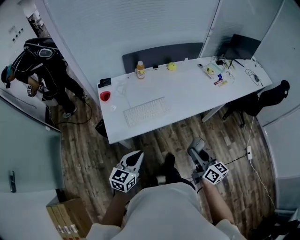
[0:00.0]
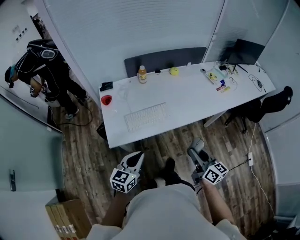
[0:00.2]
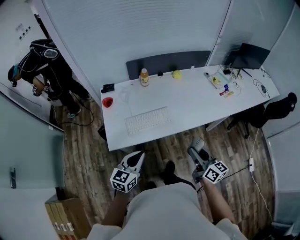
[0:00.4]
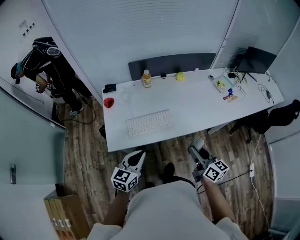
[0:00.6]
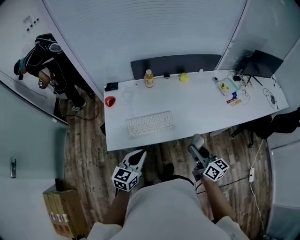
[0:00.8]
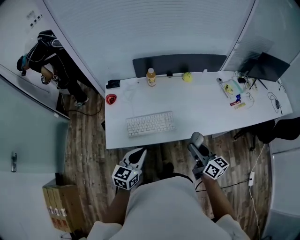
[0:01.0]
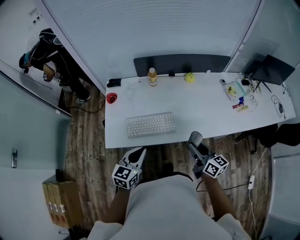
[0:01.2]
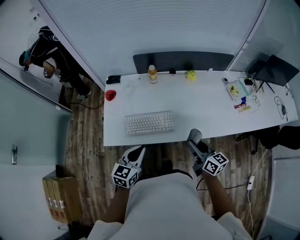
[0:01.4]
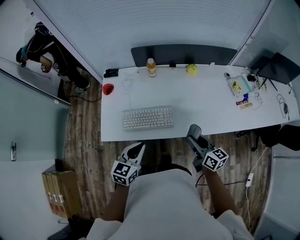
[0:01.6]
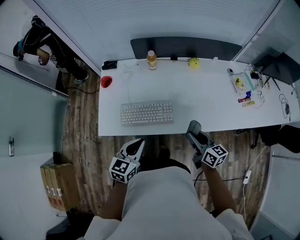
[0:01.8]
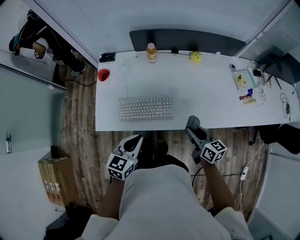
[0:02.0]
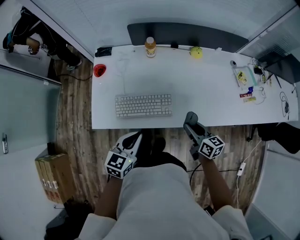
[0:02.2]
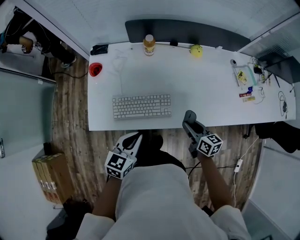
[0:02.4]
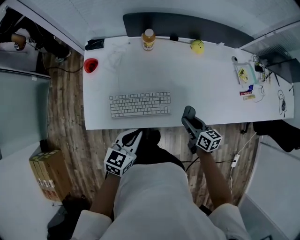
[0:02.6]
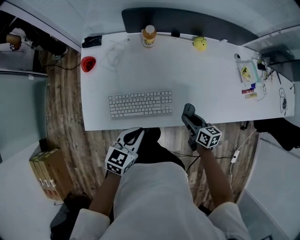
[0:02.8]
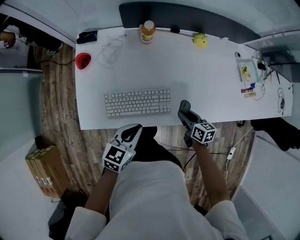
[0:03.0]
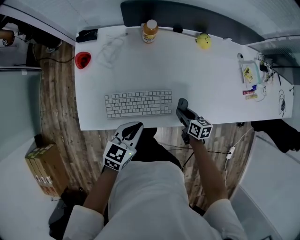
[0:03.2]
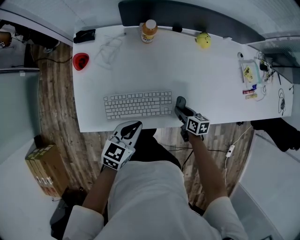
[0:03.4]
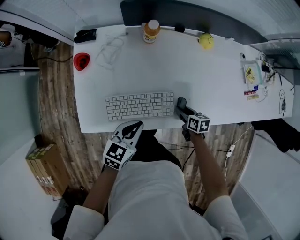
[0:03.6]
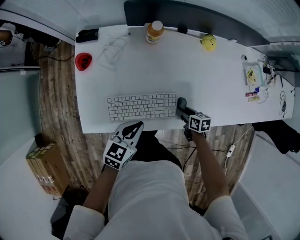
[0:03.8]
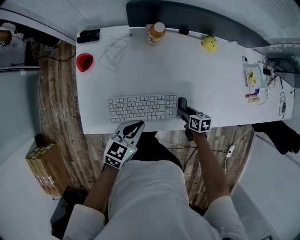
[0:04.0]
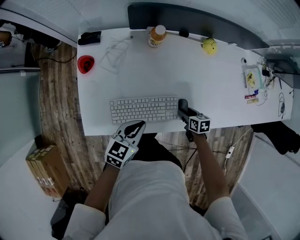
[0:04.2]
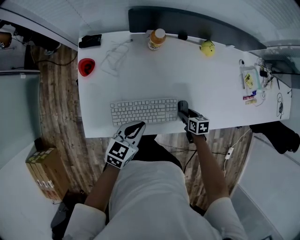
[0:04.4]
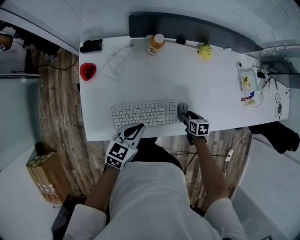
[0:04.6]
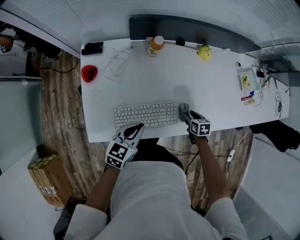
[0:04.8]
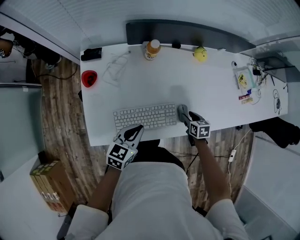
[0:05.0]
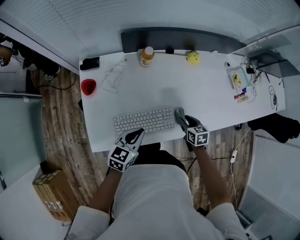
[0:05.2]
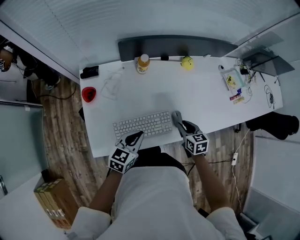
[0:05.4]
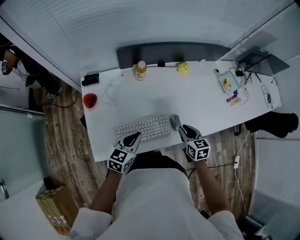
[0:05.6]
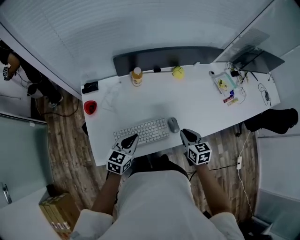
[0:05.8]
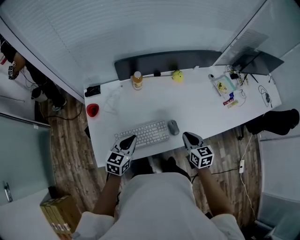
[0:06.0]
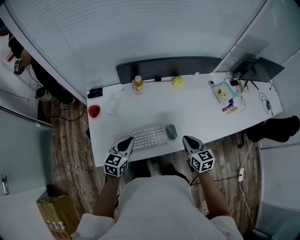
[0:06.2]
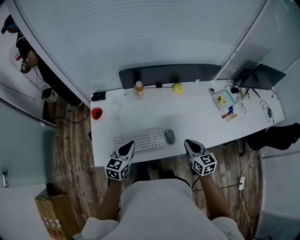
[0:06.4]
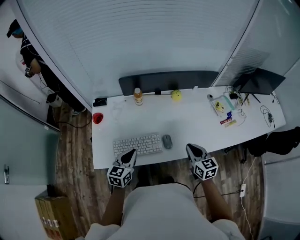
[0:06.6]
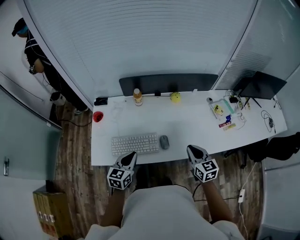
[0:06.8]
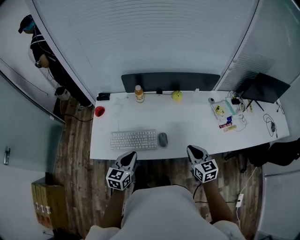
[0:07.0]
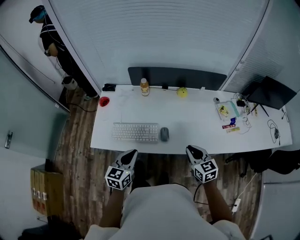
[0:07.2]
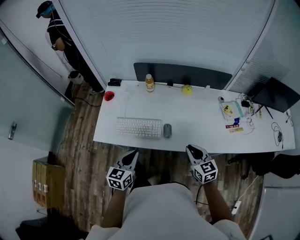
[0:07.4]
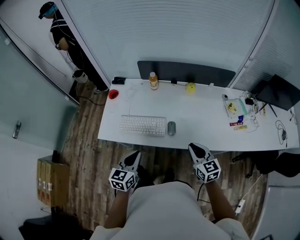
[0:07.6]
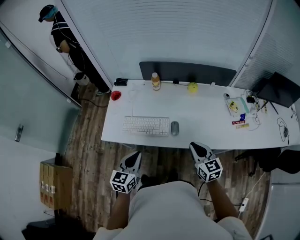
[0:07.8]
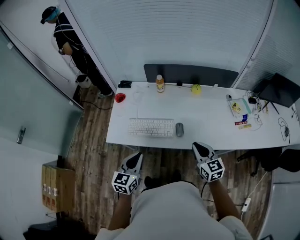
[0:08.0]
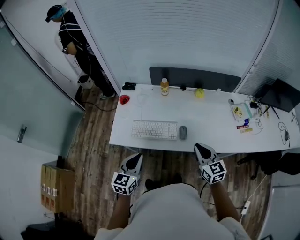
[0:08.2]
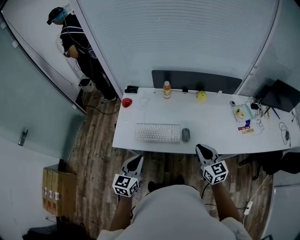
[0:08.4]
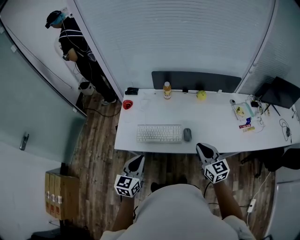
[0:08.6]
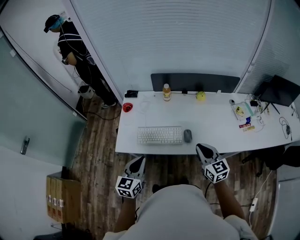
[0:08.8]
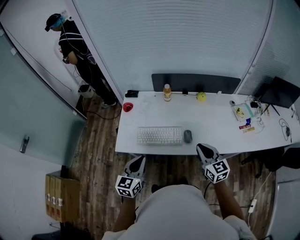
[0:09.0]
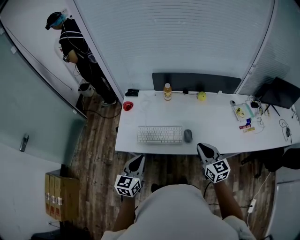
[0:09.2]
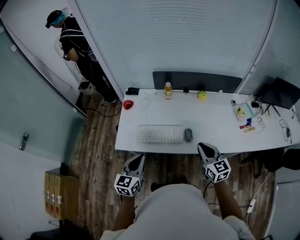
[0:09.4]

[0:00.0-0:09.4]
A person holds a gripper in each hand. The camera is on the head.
0:00.0 to 0:01.6: The left gripper heads forward and to the right, covering about 20 cm. Meanwhile the right gripper shifts about 25 cm forward, and swivels approximately 20 degrees.
0:01.6 to 0:03.2: The right gripper shifts approximately 25 cm downward and forward, and rotates approximately 30 degrees, while the left gripper travels downward and forward by roughly 15 cm.
0:03.2 to 0:04.8: The right gripper moves roughly 5 cm, and changes its angle by about 20 degrees; the left gripper shifts by about 5 cm.
0:04.8 to 0:06.2: The left gripper travels upward by approximately 5 cm, while the right gripper heads upward, covering roughly 25 cm, tilts its fingers roughly 30 degrees upward, and closes its fingers.
0:06.2 to 0:07.8: The left gripper moves backward and to the right, some 20 cm, and changes its angle by roughly 20 degrees, while the right gripper is displaced backward, upward and to the right by approximately 15 cm, and turns by some 20 degrees.
0:07.8 to 0:09.4: Both grippers travel together to the left, about 10 cm.

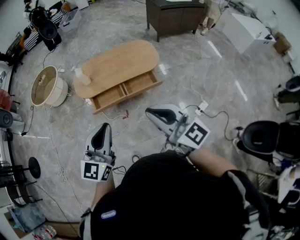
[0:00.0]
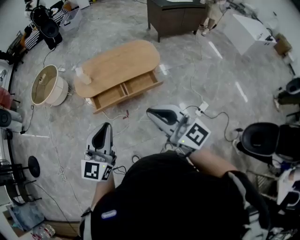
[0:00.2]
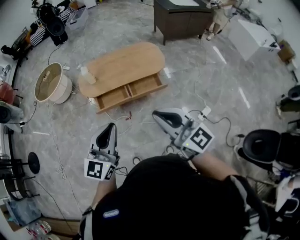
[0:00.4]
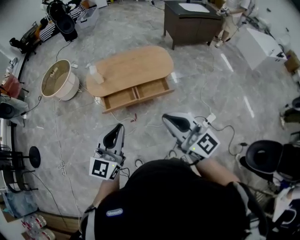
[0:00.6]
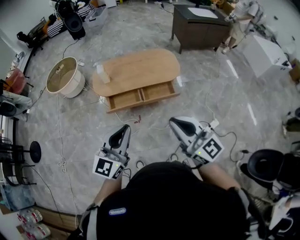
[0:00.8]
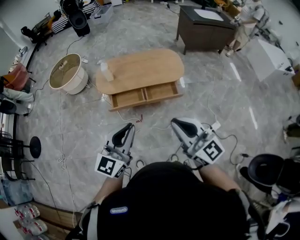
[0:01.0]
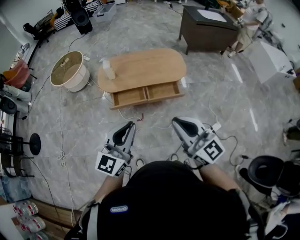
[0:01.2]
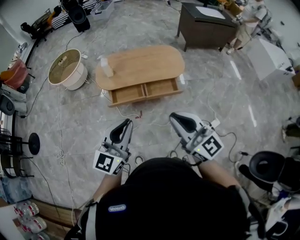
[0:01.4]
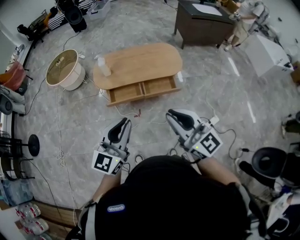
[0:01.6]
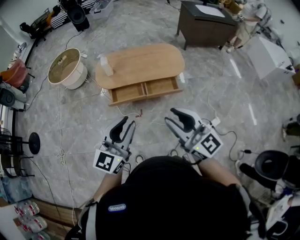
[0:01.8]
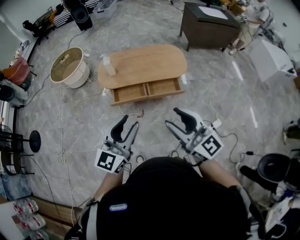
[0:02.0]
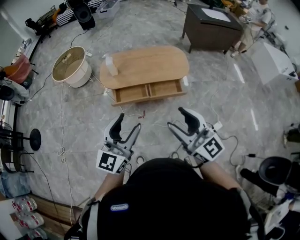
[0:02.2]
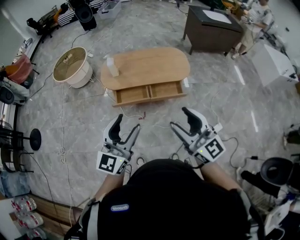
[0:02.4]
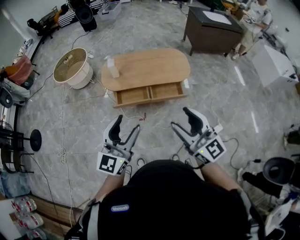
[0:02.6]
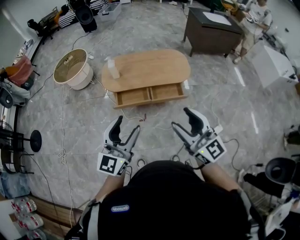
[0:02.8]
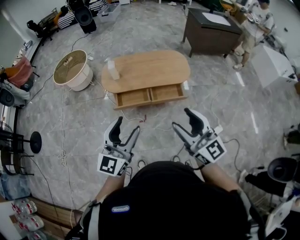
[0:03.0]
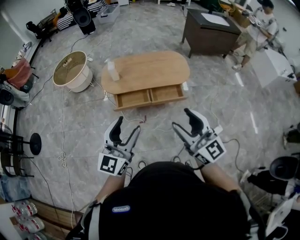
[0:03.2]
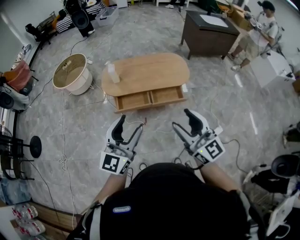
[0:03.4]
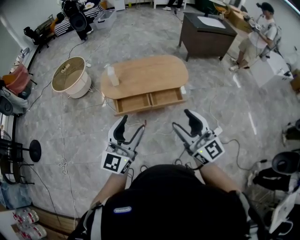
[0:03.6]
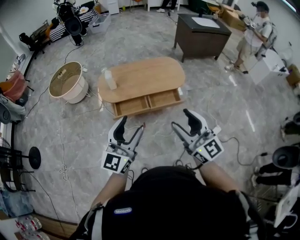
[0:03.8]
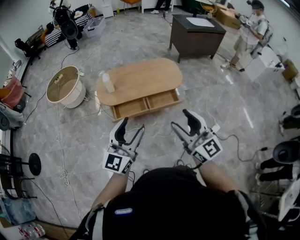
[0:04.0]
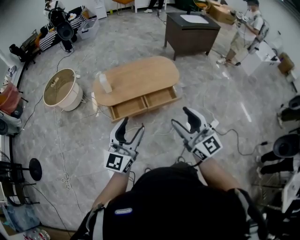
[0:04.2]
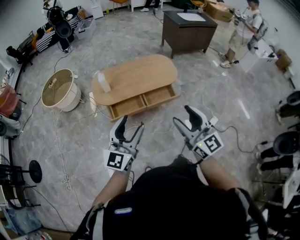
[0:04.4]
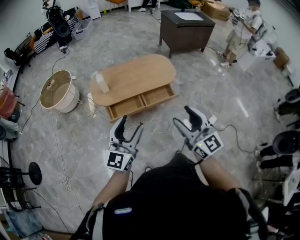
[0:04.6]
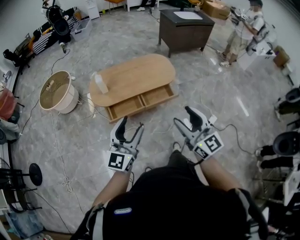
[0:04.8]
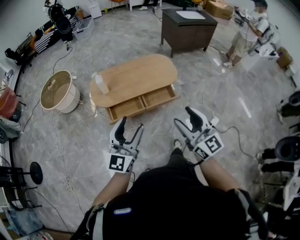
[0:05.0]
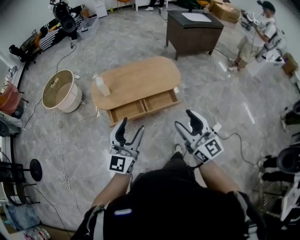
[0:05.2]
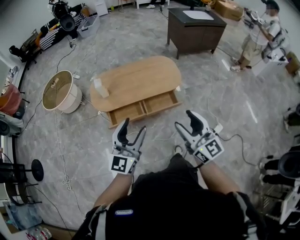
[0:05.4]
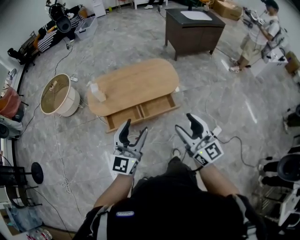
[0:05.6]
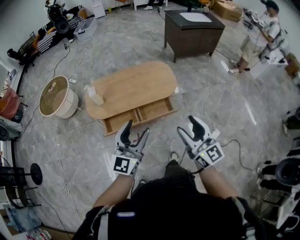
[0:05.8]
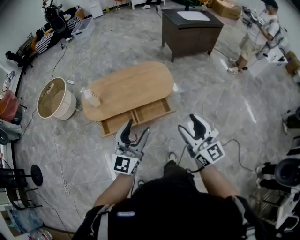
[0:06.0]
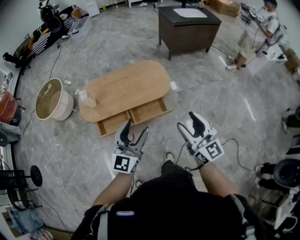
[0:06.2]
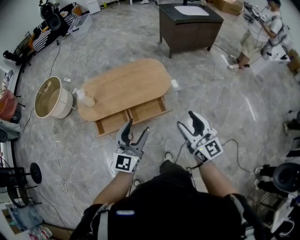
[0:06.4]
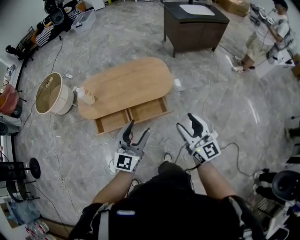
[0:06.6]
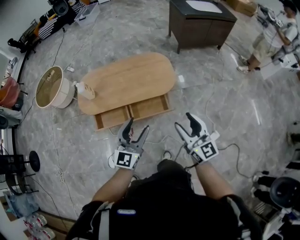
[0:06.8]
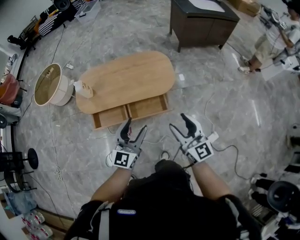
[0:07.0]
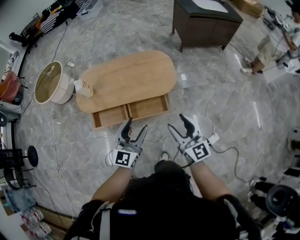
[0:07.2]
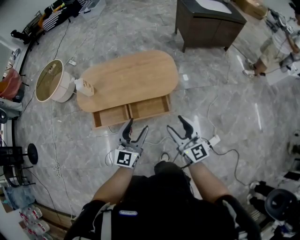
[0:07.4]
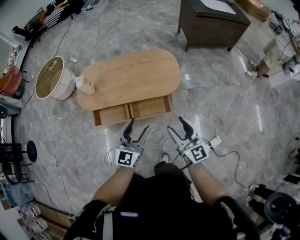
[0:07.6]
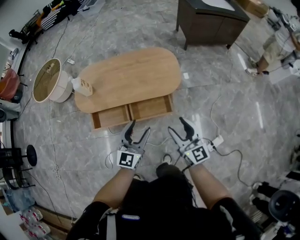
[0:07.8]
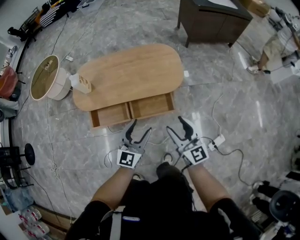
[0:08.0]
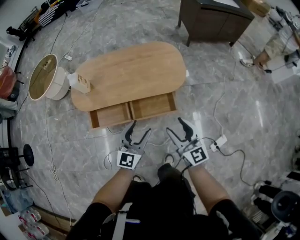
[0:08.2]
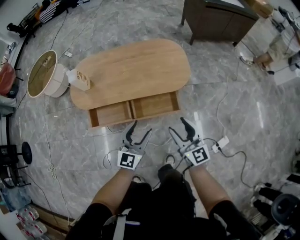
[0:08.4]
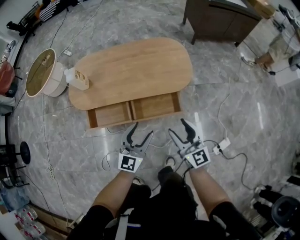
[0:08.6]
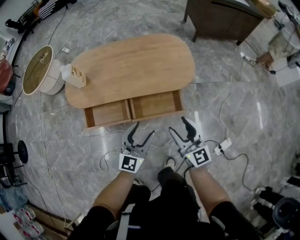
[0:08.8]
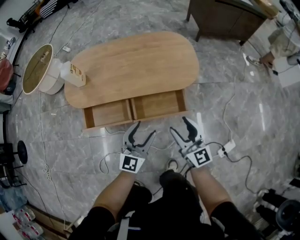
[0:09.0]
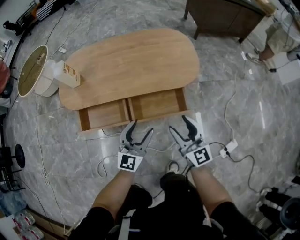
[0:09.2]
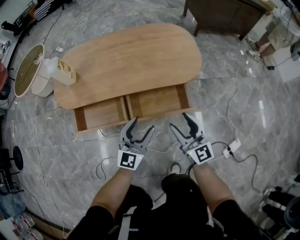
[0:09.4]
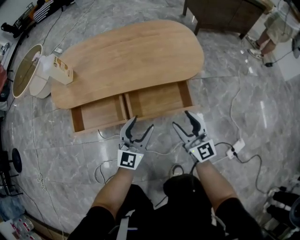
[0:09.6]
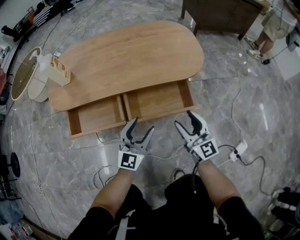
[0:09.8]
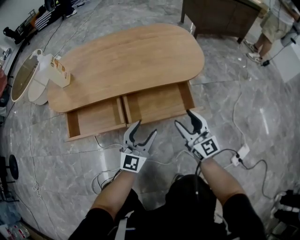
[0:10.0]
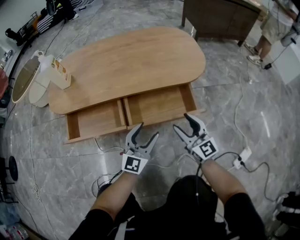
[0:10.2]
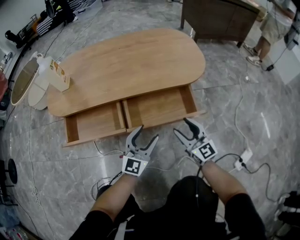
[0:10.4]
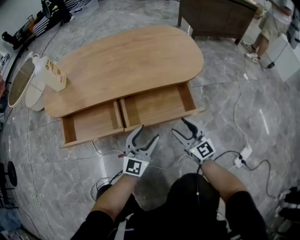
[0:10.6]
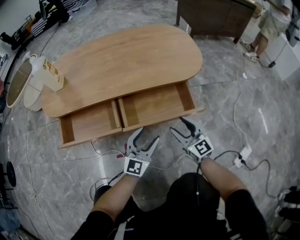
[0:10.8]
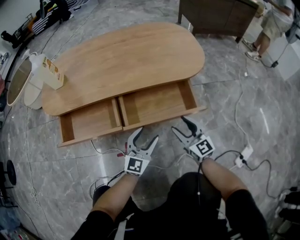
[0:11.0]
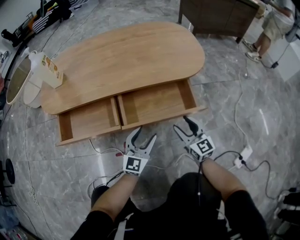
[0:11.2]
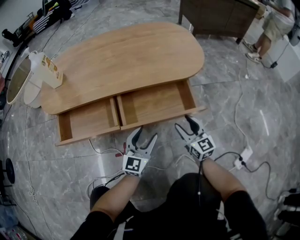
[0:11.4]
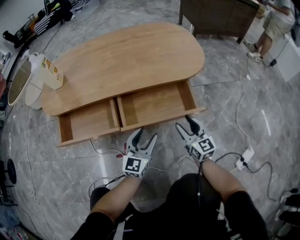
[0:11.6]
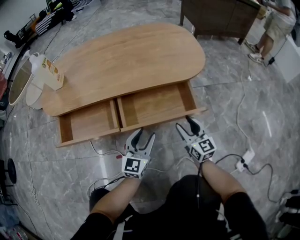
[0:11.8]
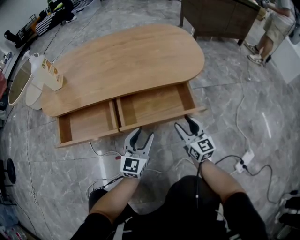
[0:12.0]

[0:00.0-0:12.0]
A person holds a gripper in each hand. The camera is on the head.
0:00.0 to 0:01.6: The grippers move only a little.
0:01.6 to 0:03.0: The right gripper opens up; the left gripper opens up.
0:03.0 to 0:04.4: The left gripper shifts by roughly 5 cm.
0:04.4 to 0:06.0: The left gripper shifts approximately 25 cm forward and to the right; the right gripper heads to the right and forward, covering approximately 25 cm.
0:06.0 to 0:07.6: The right gripper moves downward and forward, approximately 20 cm. Meanwhile the left gripper moves downward, forward and to the right, about 25 cm.
0:07.6 to 0:09.0: The grippers both shift downward by approximately 20 cm.
0:09.0 to 0:10.4: The grippers both shift downward by approximately 25 cm.
0:10.4 to 0:12.0: The right gripper travels downward by approximately 5 cm.

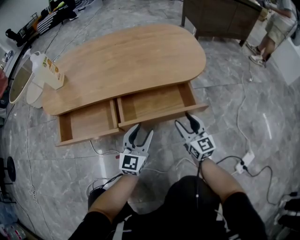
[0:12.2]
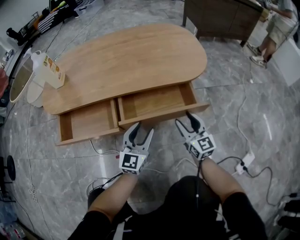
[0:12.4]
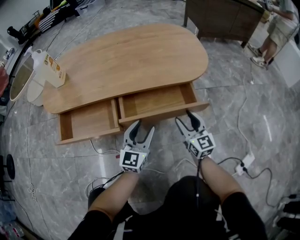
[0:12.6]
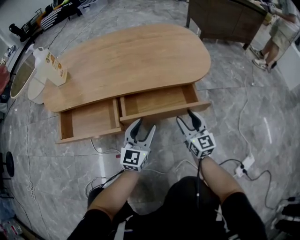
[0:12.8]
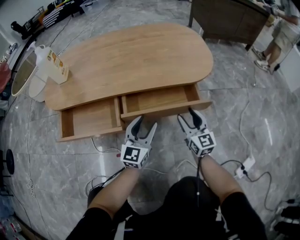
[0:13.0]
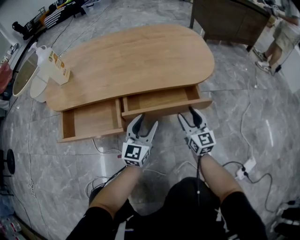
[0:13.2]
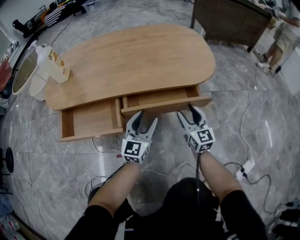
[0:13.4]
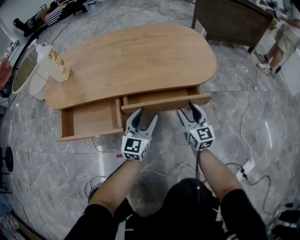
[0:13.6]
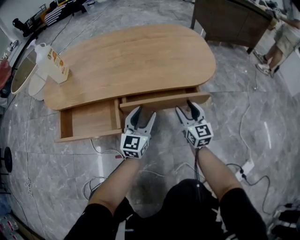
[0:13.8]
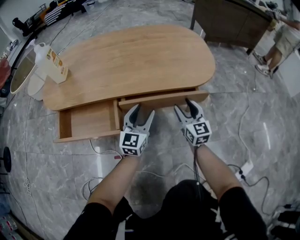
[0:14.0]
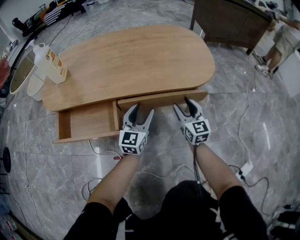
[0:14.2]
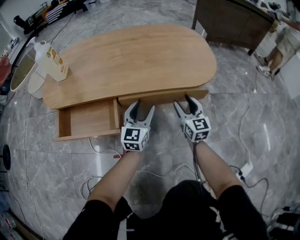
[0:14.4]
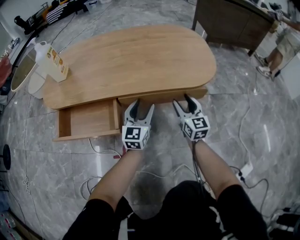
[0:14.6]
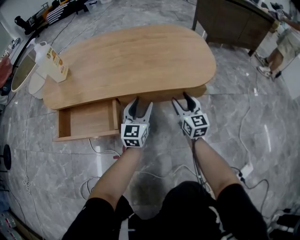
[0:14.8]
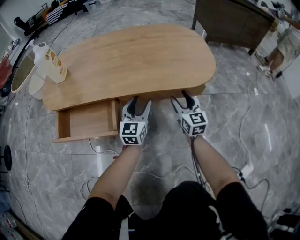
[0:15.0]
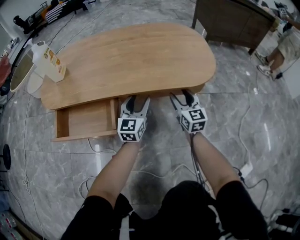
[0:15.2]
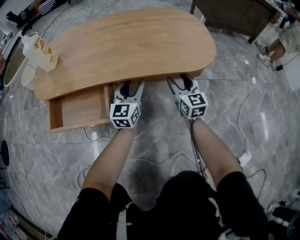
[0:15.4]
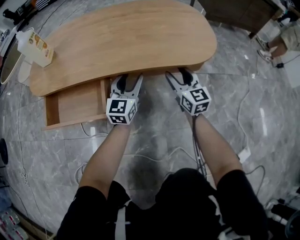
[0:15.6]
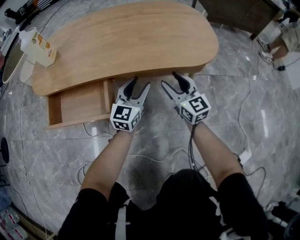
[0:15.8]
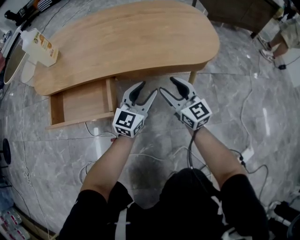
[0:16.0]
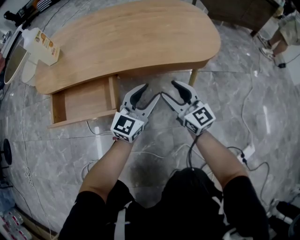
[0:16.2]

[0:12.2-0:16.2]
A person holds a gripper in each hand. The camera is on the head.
0:12.2 to 0:13.6: Both grippers travel together forward, roughly 5 cm.
0:13.6 to 0:14.8: Both grippers travel together forward, approximately 5 cm.
0:14.8 to 0:16.2: The left gripper travels backward by about 5 cm, and rotates roughly 20 degrees. Meanwhile the right gripper heads backward and to the left, covering some 10 cm, and changes its angle by some 20 degrees.
